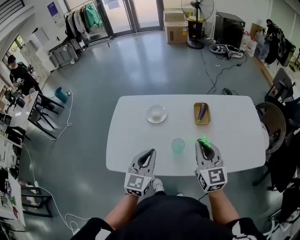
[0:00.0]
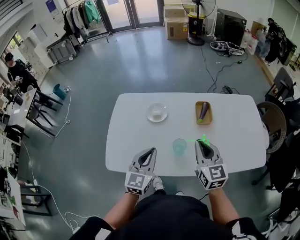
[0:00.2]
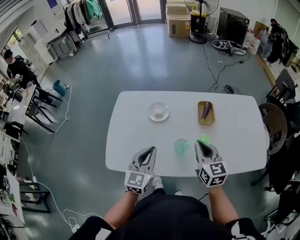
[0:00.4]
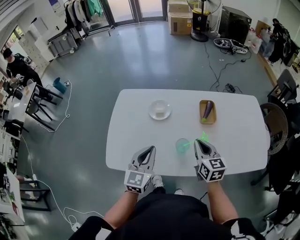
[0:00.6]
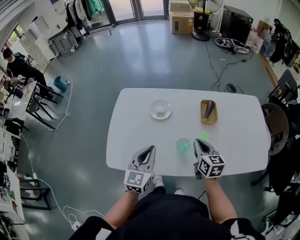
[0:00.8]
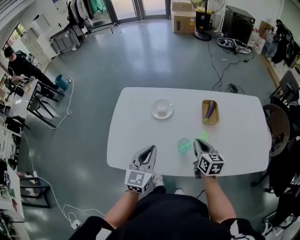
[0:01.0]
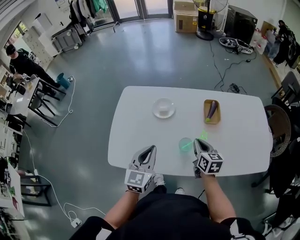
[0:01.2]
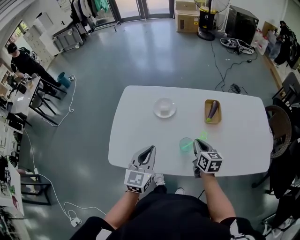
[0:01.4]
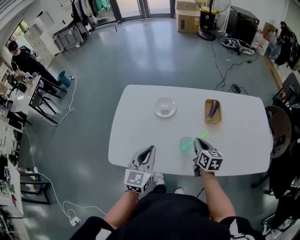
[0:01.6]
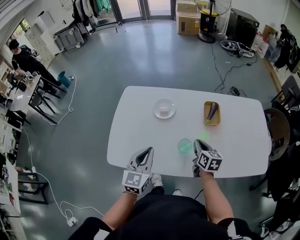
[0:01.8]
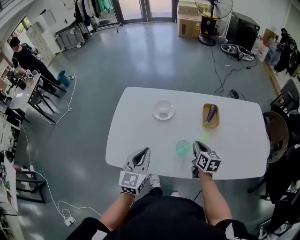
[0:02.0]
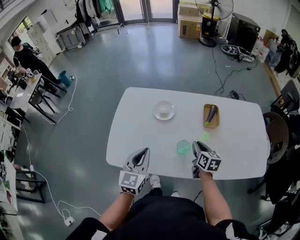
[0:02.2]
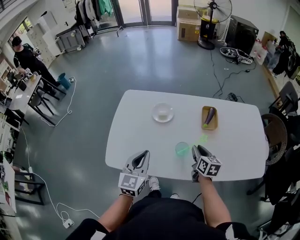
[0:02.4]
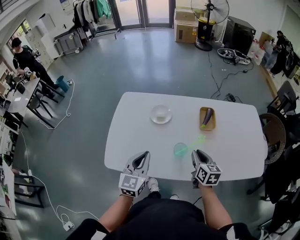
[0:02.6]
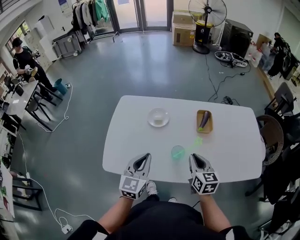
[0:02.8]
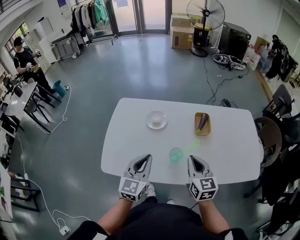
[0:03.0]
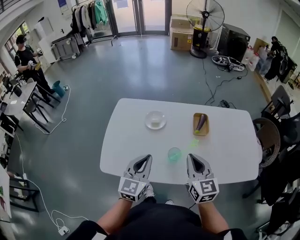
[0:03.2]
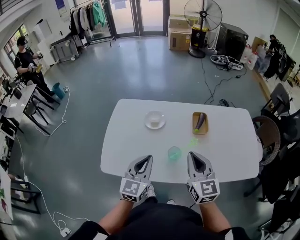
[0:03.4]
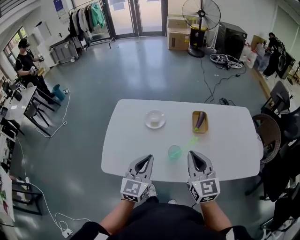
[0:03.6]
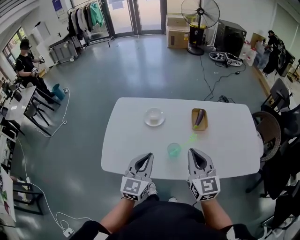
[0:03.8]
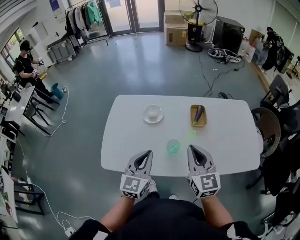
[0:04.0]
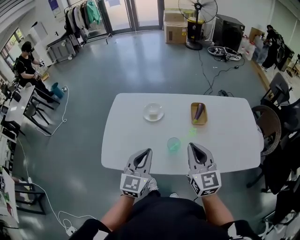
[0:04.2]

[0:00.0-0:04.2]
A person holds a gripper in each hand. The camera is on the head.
0:00.0 to 0:01.4: The left gripper shifts by about 5 cm, while the right gripper heads downward, covering some 20 cm, and turns by about 30 degrees.
0:01.4 to 0:02.8: The right gripper heads upward and backward, covering roughly 10 cm.
0:02.8 to 0:04.2: The left gripper changes place by roughly 5 cm, while the right gripper moves upward, approximately 15 cm, and swivels approximately 20 degrees.

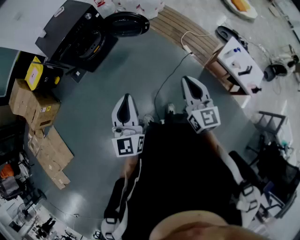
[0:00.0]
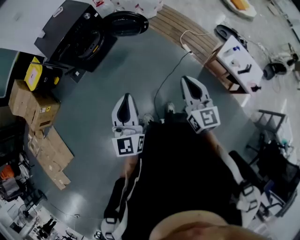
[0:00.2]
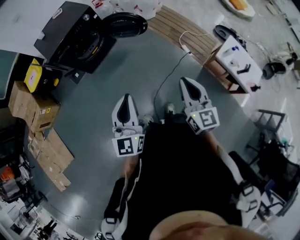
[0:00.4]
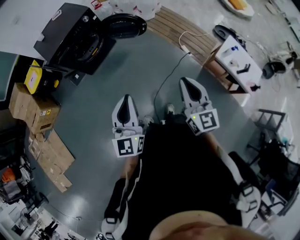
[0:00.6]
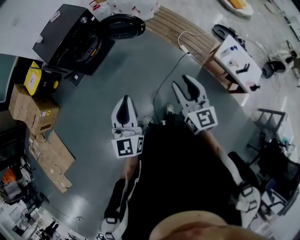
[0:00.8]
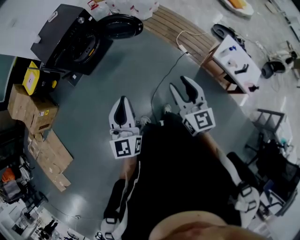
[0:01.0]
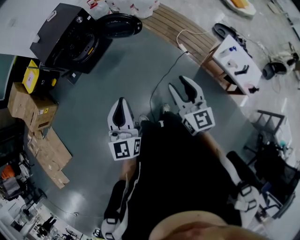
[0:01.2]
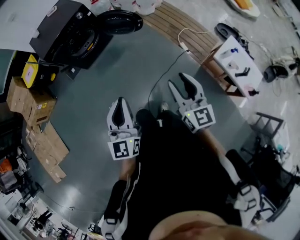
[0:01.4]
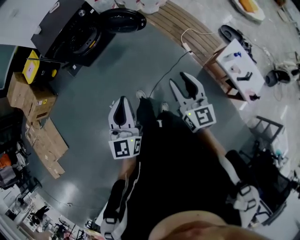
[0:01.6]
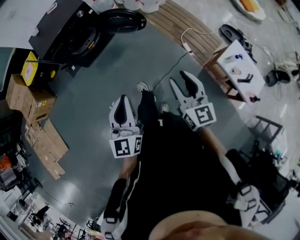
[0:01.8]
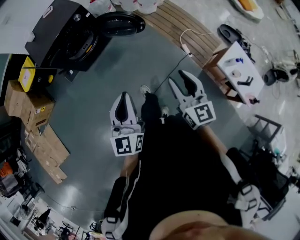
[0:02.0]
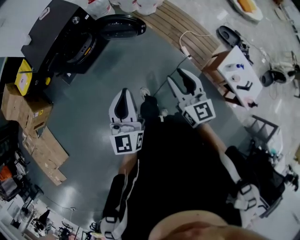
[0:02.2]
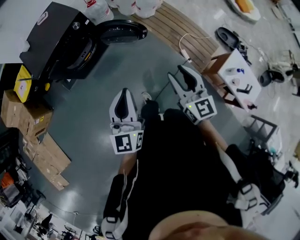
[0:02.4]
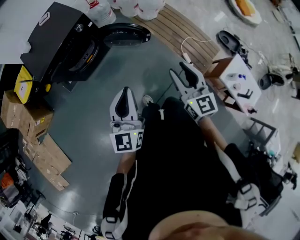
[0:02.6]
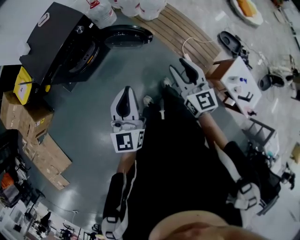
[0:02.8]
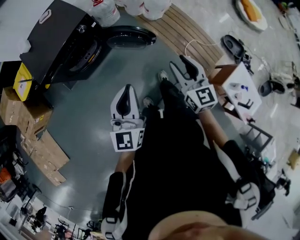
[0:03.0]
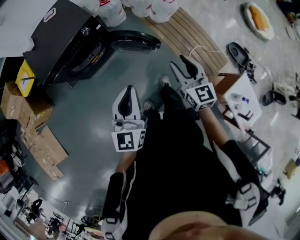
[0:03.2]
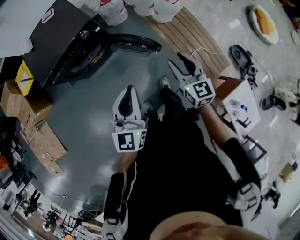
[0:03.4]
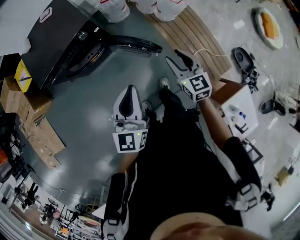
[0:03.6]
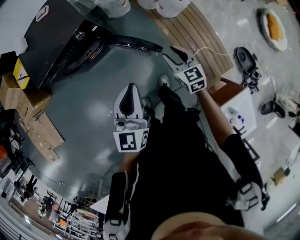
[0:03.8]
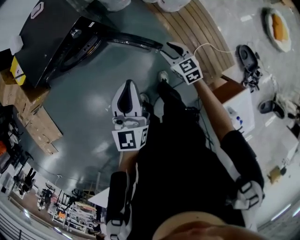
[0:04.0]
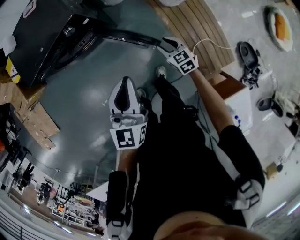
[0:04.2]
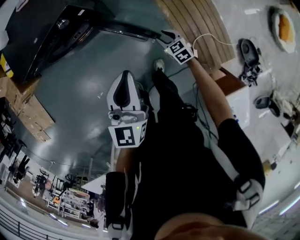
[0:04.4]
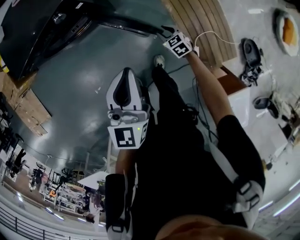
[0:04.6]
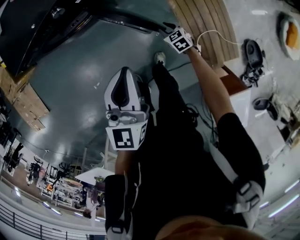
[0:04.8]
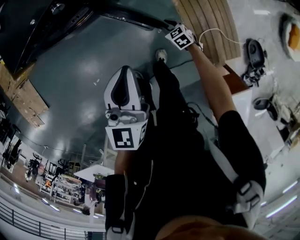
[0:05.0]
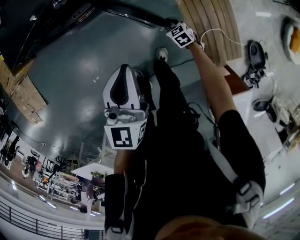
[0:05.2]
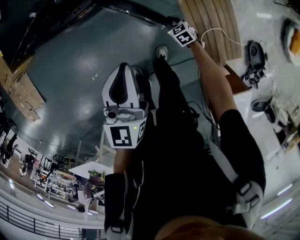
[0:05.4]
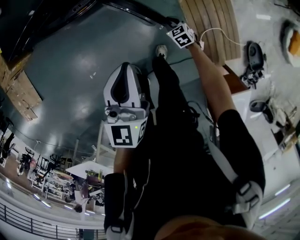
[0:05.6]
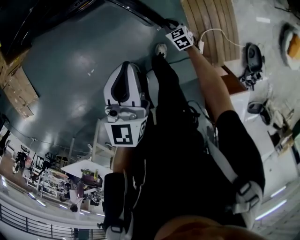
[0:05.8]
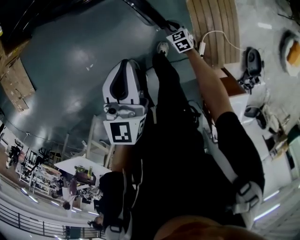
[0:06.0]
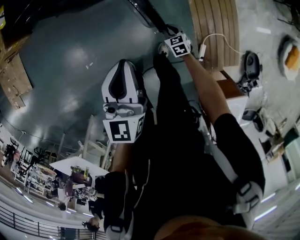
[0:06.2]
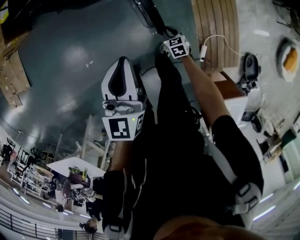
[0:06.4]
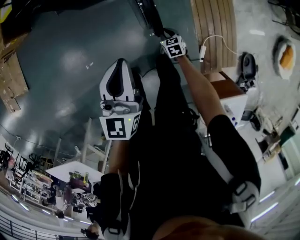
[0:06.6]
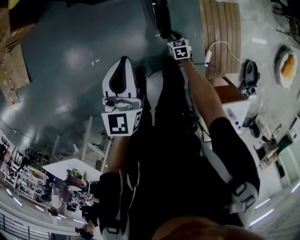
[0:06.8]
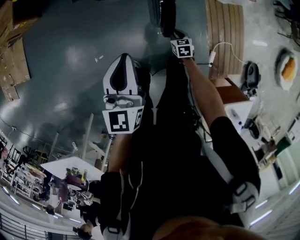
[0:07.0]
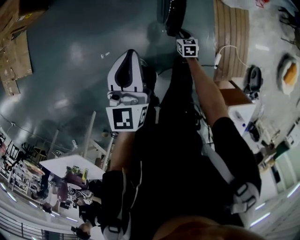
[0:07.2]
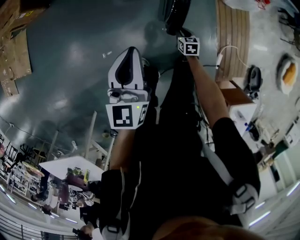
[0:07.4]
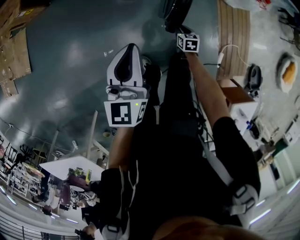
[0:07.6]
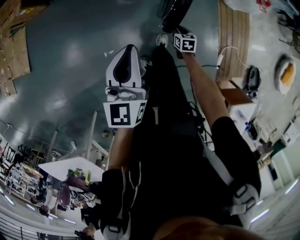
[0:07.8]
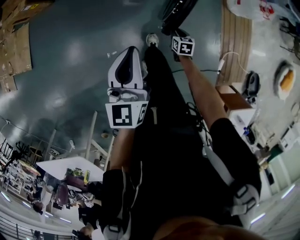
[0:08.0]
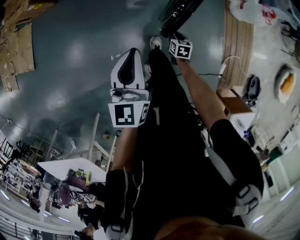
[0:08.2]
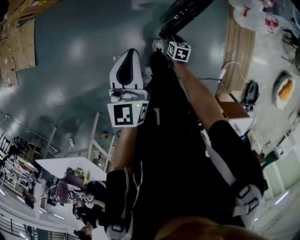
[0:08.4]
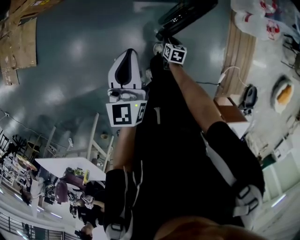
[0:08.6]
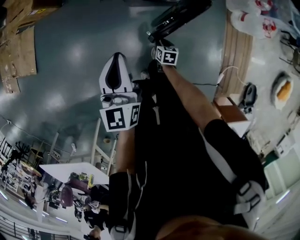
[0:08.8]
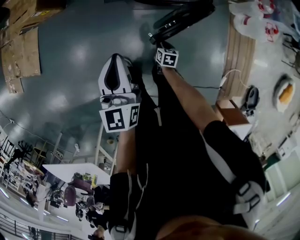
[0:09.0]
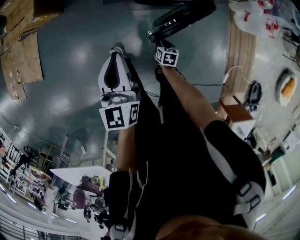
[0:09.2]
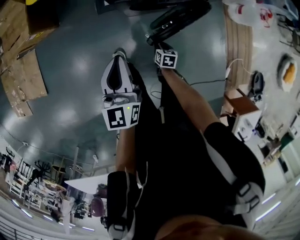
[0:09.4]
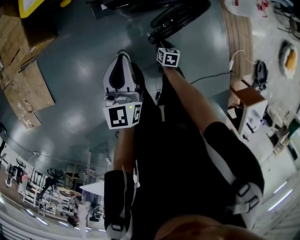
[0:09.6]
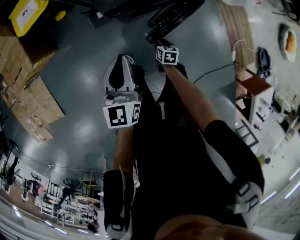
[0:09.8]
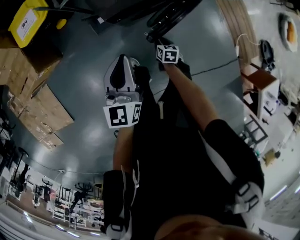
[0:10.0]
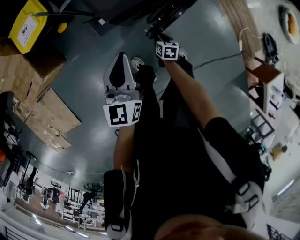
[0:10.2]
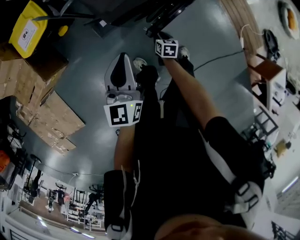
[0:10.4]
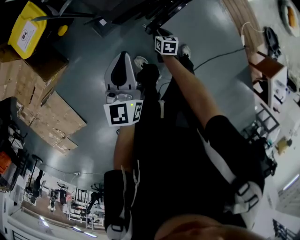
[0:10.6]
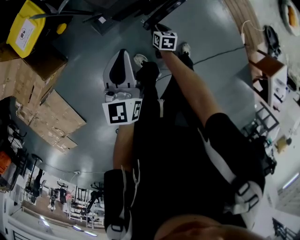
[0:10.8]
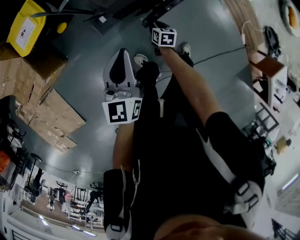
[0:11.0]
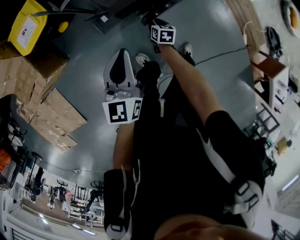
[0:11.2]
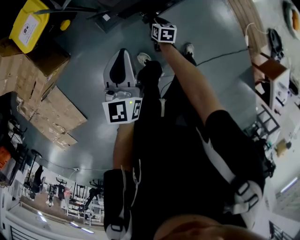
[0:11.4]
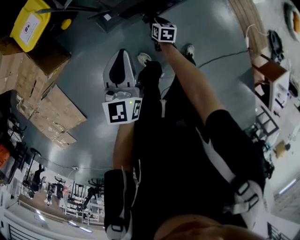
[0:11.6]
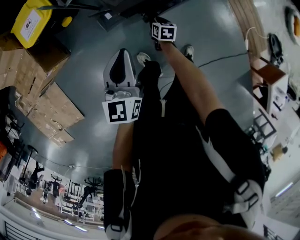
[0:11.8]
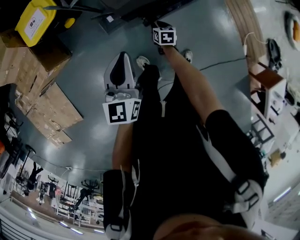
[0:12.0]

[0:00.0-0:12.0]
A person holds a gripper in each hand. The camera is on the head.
0:00.0 to 0:01.6: The left gripper heads to the right, covering about 5 cm, while the right gripper is displaced to the right and forward by approximately 10 cm, and opens.
0:01.6 to 0:03.0: The grippers both shift forward by some 35 cm.
0:03.0 to 0:04.4: The right gripper shifts roughly 35 cm downward, and points its fingers roughly 30 degrees further downward. The left gripper changes place by roughly 30 cm.
0:04.4 to 0:06.0: The left gripper shifts roughly 10 cm to the left and downward, while the right gripper goes approximately 15 cm downward and to the left, and closes its fingers.
0:06.0 to 0:07.6: The grippers both shift to the left by roughly 30 cm.
0:07.6 to 0:09.0: The right gripper goes about 25 cm to the left and forward; the left gripper moves forward and to the left, about 20 cm.
0:09.0 to 0:10.4: The left gripper moves roughly 20 cm, and turns by roughly 40 degrees, while the right gripper ends up approximately 20 cm from where it was, and changes its angle by some 30 degrees.
0:10.4 to 0:12.0: The right gripper moves forward, about 5 cm.

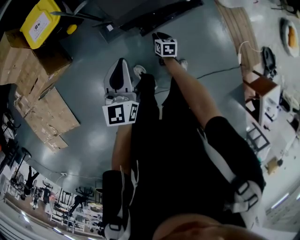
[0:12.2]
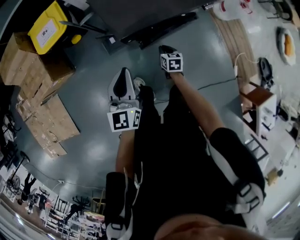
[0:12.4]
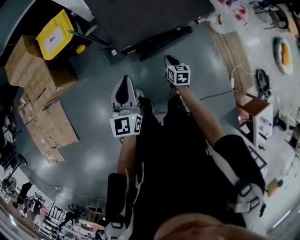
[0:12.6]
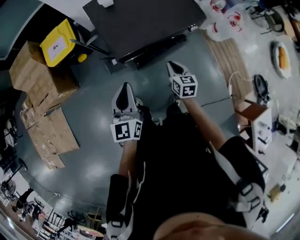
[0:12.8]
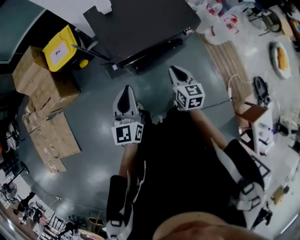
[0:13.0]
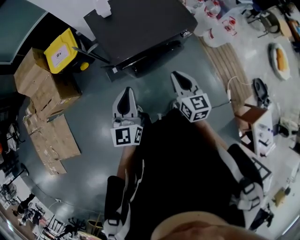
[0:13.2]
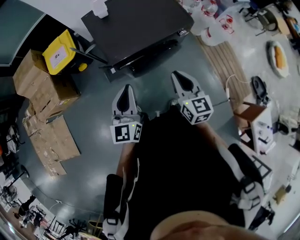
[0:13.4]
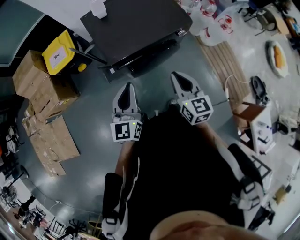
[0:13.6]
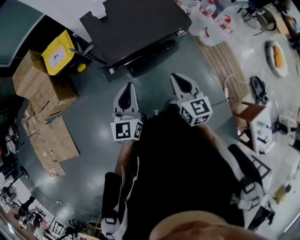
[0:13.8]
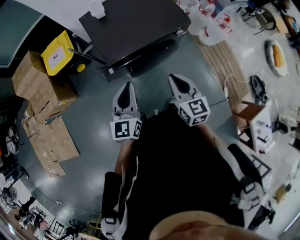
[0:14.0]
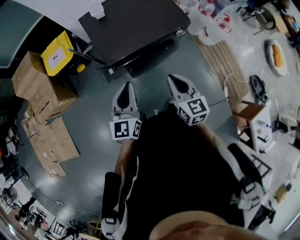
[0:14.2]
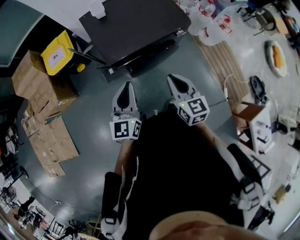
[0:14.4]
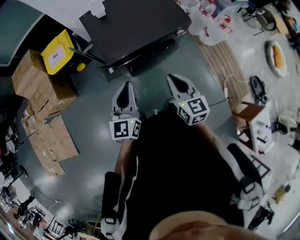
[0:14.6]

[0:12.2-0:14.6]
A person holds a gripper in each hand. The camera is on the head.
0:12.2 to 0:13.4: The left gripper travels upward and to the right by approximately 20 cm. Meanwhile the right gripper moves upward, roughly 40 cm, and points its fingers some 40 degrees further upward.
0:13.4 to 0:14.6: There are only small adjustments of the grippers.

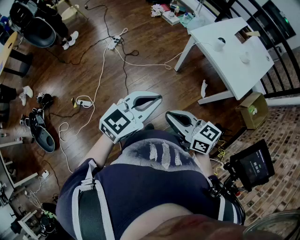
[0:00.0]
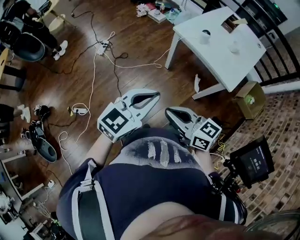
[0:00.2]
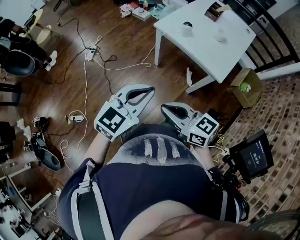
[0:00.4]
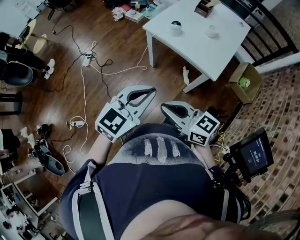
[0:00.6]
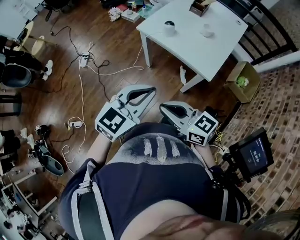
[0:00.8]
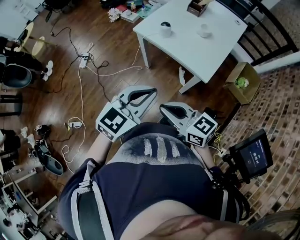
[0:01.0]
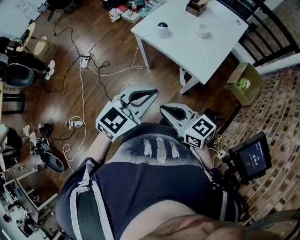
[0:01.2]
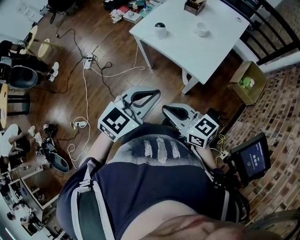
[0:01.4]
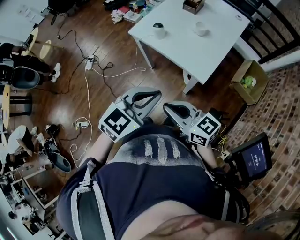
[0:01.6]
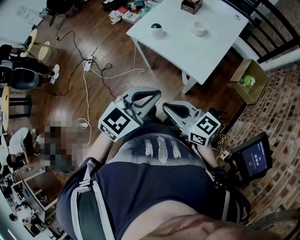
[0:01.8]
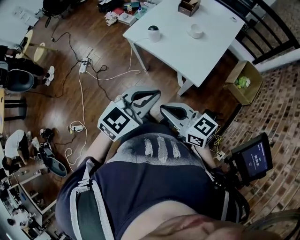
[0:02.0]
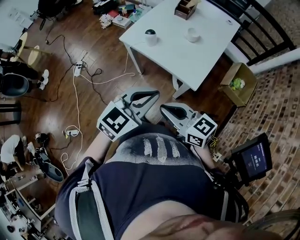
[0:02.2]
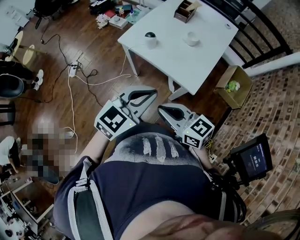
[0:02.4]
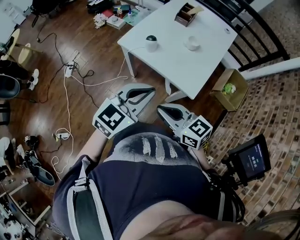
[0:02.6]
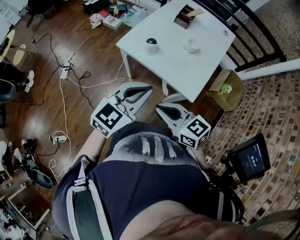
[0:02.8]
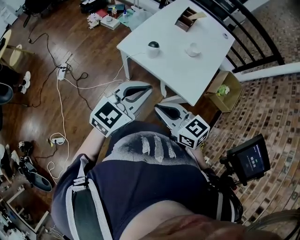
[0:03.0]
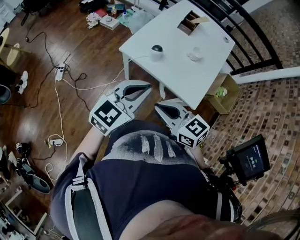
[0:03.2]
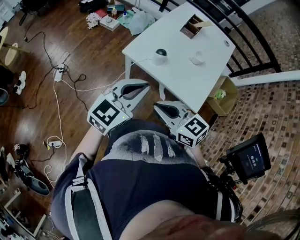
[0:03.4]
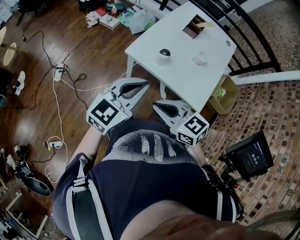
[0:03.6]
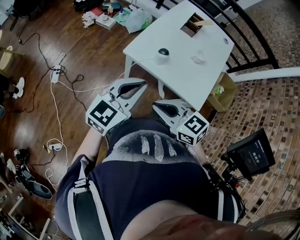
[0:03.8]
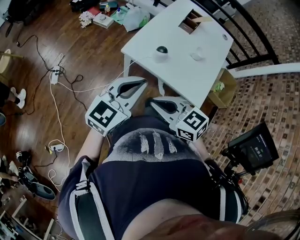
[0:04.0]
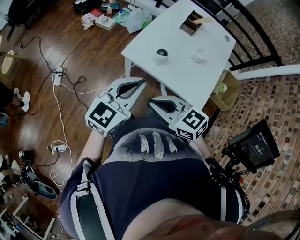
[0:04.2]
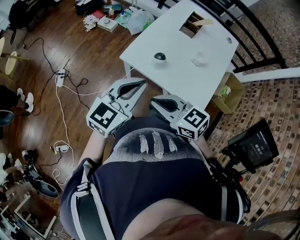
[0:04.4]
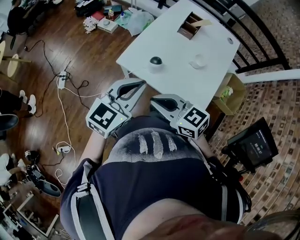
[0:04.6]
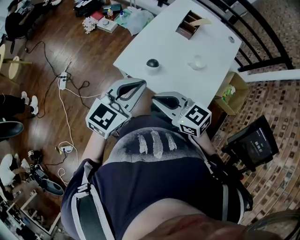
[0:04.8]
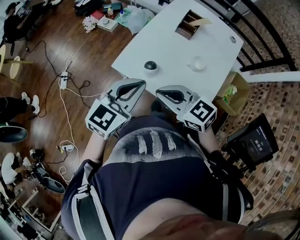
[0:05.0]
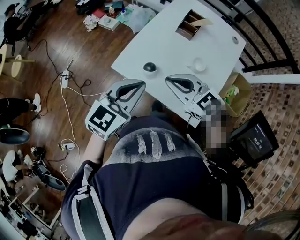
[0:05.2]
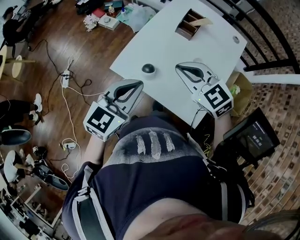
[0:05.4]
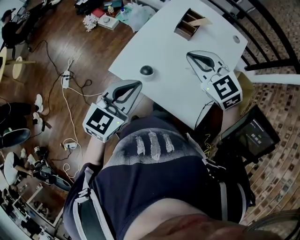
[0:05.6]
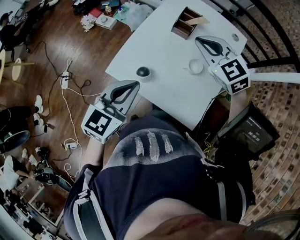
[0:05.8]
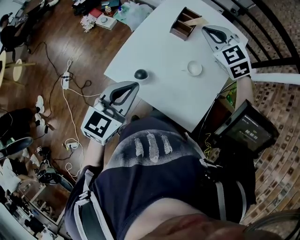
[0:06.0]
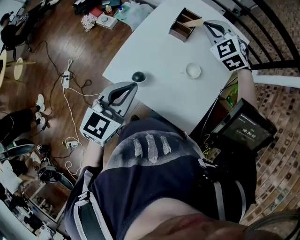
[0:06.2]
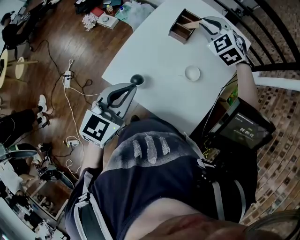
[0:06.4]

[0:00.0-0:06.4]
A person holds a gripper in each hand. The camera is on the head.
0:00.0 to 0:01.6: The two grippers go about 30 cm to the right.
0:01.6 to 0:03.2: The grippers both shift forward and to the left by approximately 15 cm.
0:03.2 to 0:04.8: Both grippers travel together forward, approximately 10 cm.
0:04.8 to 0:06.4: The left gripper travels forward by some 10 cm, while the right gripper moves forward and to the right, roughly 40 cm, and rotates roughly 60 degrees.
